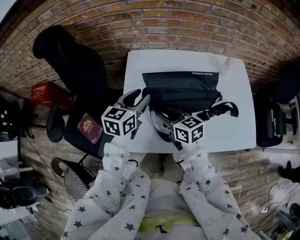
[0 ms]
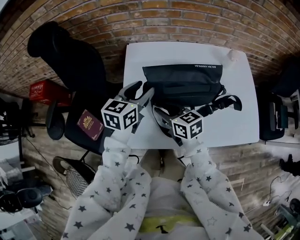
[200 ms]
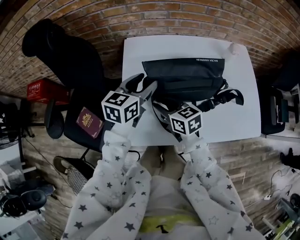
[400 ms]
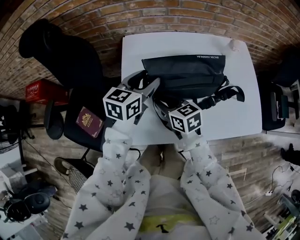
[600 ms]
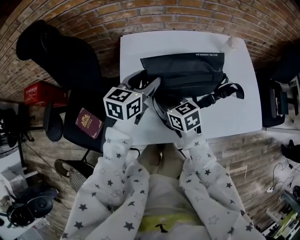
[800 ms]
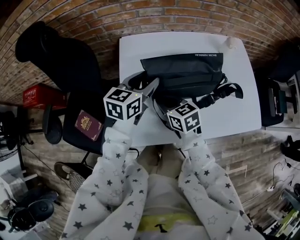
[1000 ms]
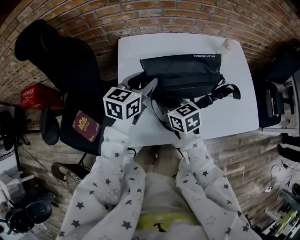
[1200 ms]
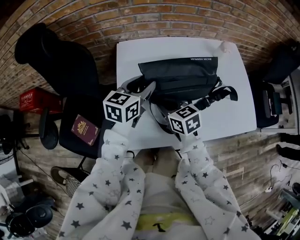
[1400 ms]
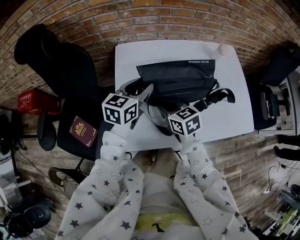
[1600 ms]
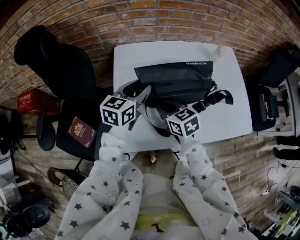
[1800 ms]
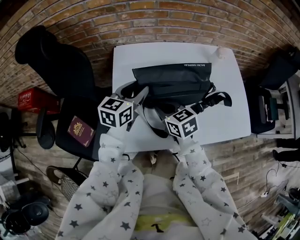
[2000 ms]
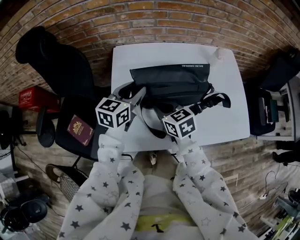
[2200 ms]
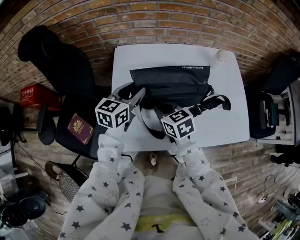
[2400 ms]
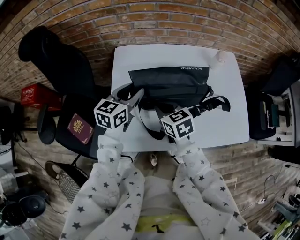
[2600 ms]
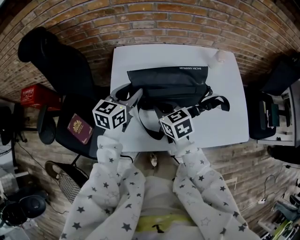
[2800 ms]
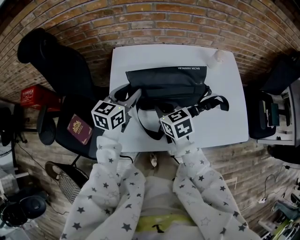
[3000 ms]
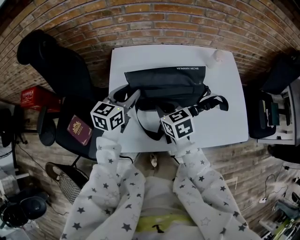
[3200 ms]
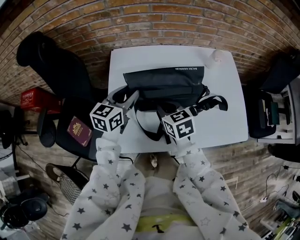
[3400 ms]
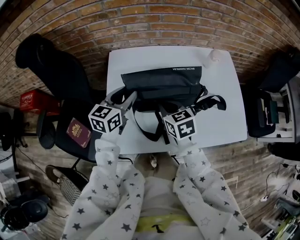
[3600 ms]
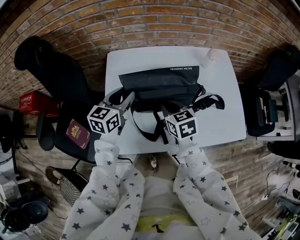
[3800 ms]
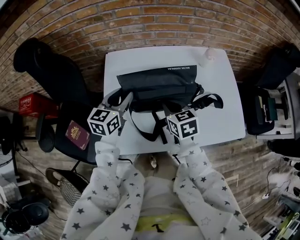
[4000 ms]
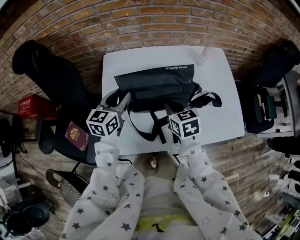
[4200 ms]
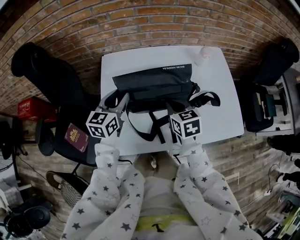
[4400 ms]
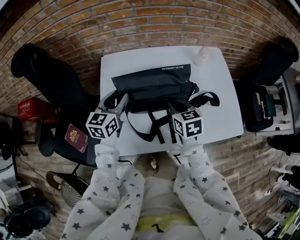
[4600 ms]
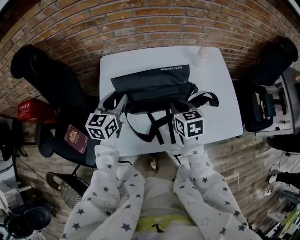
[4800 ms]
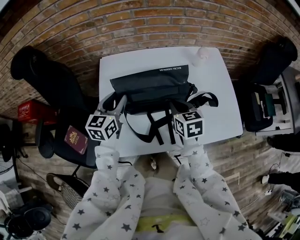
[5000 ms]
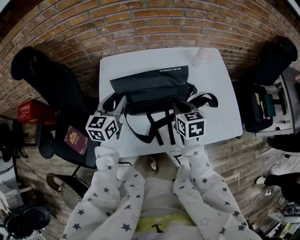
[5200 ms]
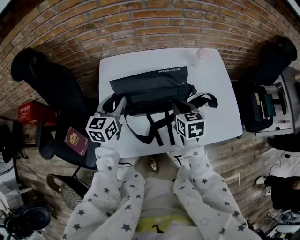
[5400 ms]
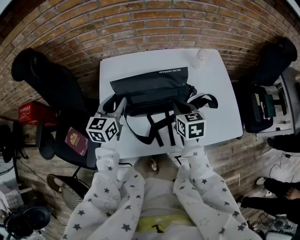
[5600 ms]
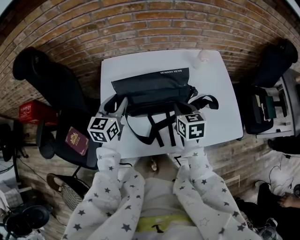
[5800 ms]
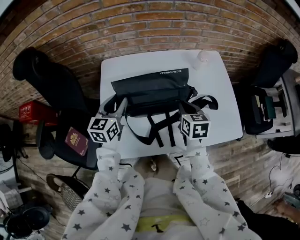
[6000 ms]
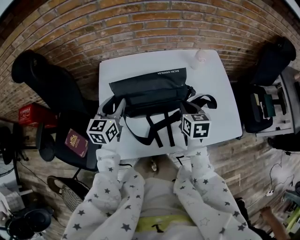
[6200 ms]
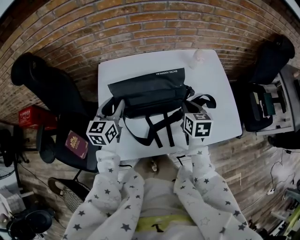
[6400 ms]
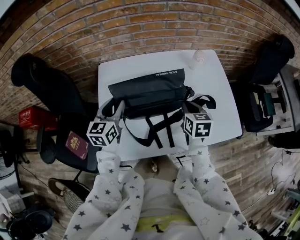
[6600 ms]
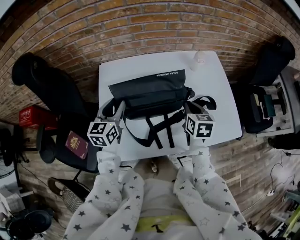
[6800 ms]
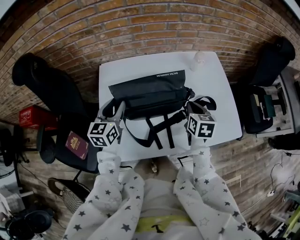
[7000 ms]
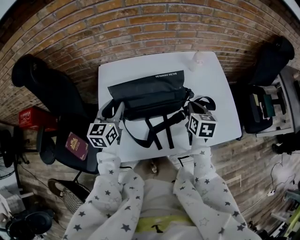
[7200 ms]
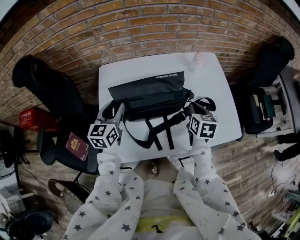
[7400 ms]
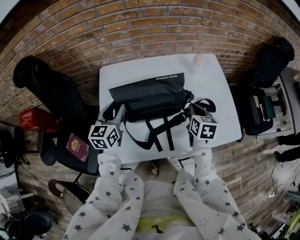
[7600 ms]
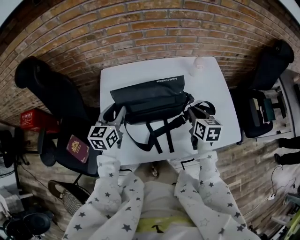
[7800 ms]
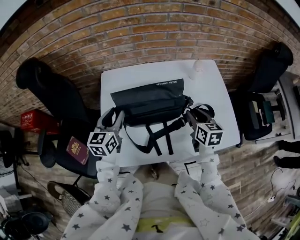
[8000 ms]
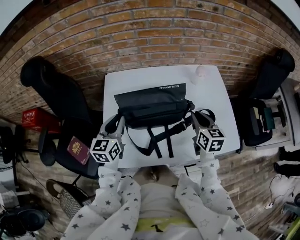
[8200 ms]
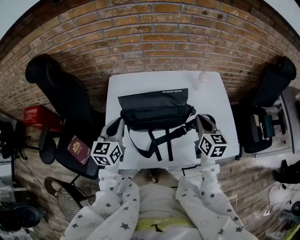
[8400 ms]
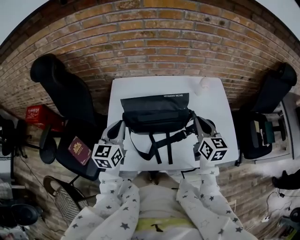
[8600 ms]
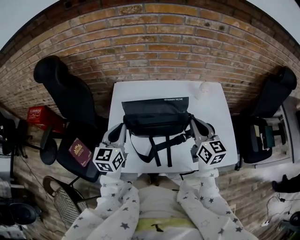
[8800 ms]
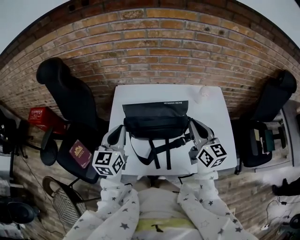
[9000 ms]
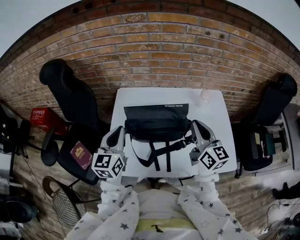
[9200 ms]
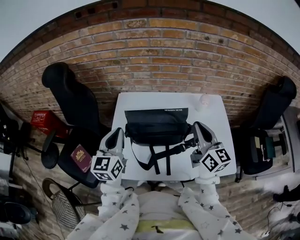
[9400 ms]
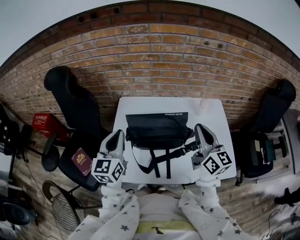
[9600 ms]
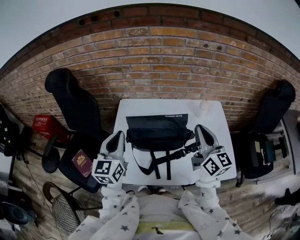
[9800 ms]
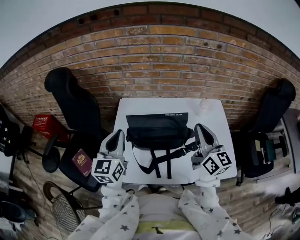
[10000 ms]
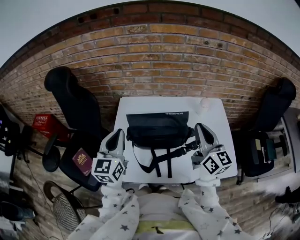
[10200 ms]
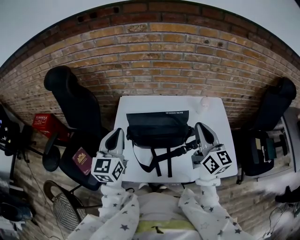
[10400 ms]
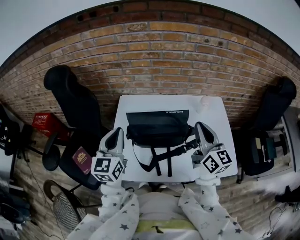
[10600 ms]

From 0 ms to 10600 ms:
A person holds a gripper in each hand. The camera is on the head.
From 0 ms to 1600 ms: The right gripper closes.
From 1600 ms to 3000 ms: The grippers make only small movements.
From 3000 ms to 4600 ms: The right gripper is displaced to the right by roughly 10 cm.
From 4600 ms to 6000 ms: The right gripper is displaced to the right by roughly 5 cm.
From 6000 ms to 7600 ms: The right gripper shifts roughly 5 cm to the right.
From 7600 ms to 9000 ms: The left gripper is displaced upward and backward by some 10 cm, and closes its fingers. Meanwhile the right gripper heads upward, covering about 15 cm, tilts its fingers about 30 degrees upward, and opens and closes again.
From 9000 ms to 10600 ms: The two grippers go roughly 5 cm upward.

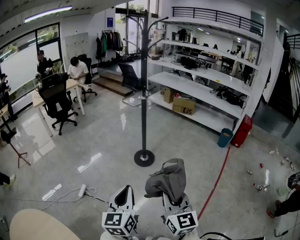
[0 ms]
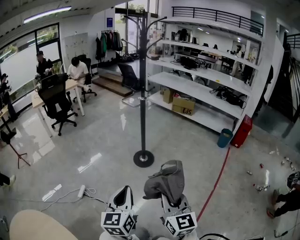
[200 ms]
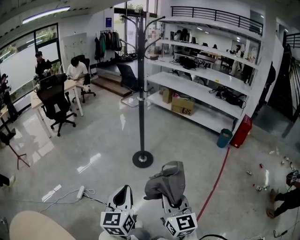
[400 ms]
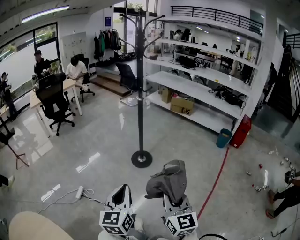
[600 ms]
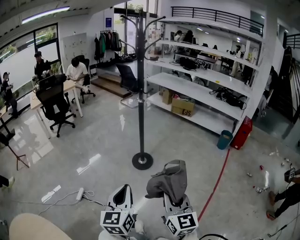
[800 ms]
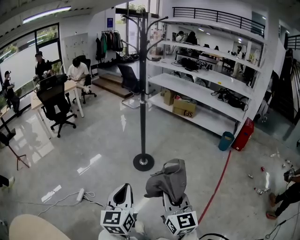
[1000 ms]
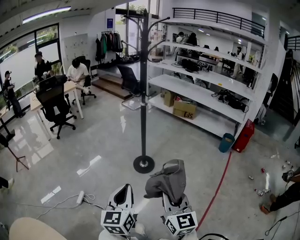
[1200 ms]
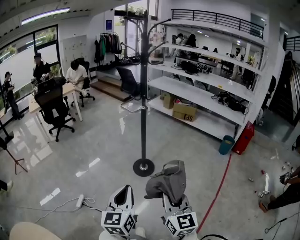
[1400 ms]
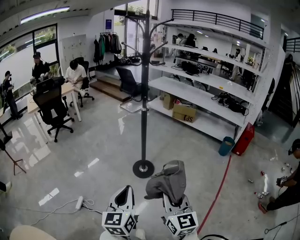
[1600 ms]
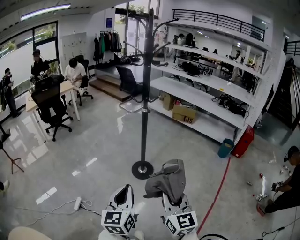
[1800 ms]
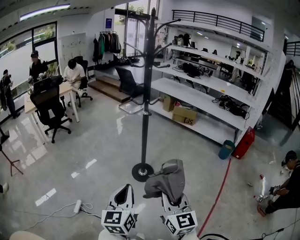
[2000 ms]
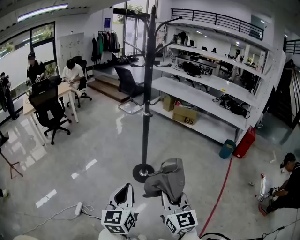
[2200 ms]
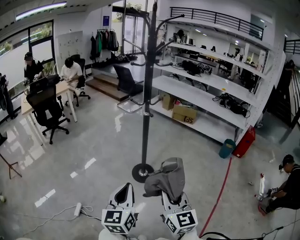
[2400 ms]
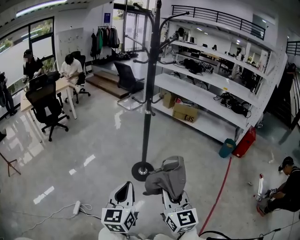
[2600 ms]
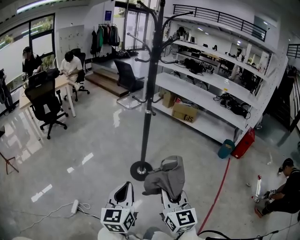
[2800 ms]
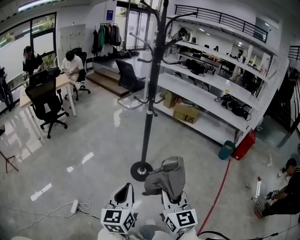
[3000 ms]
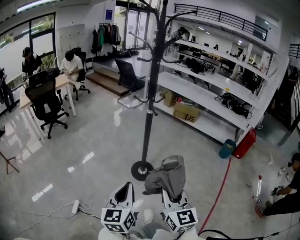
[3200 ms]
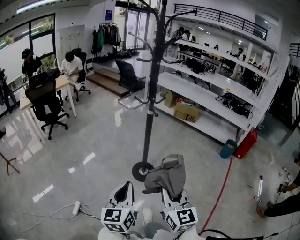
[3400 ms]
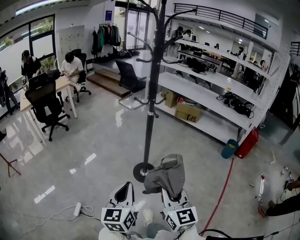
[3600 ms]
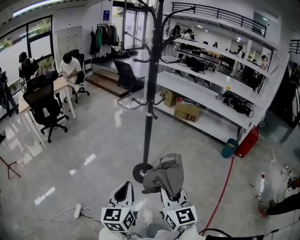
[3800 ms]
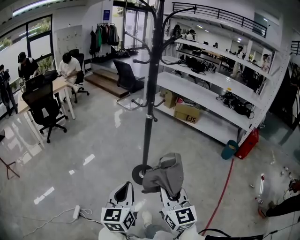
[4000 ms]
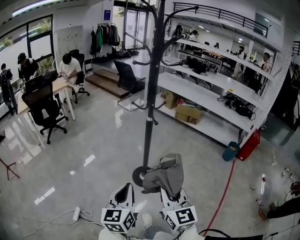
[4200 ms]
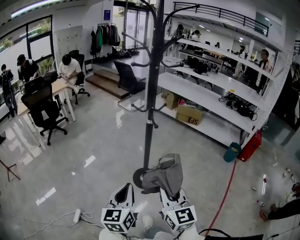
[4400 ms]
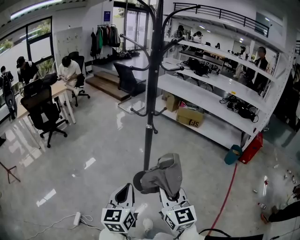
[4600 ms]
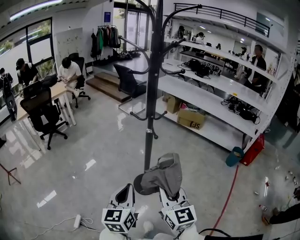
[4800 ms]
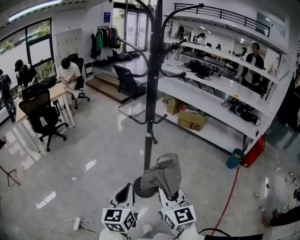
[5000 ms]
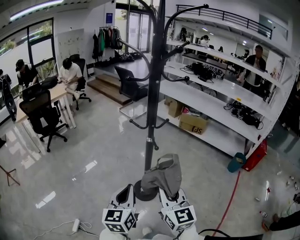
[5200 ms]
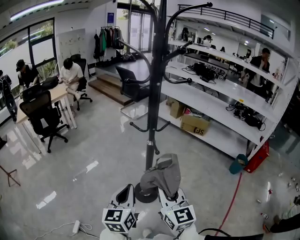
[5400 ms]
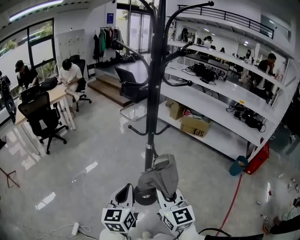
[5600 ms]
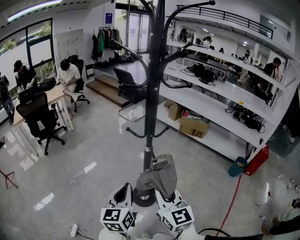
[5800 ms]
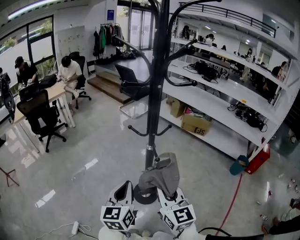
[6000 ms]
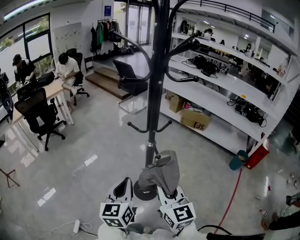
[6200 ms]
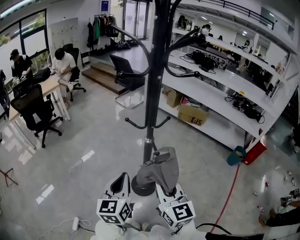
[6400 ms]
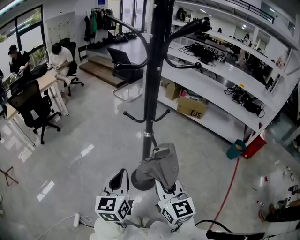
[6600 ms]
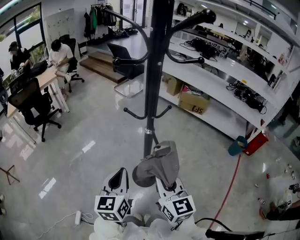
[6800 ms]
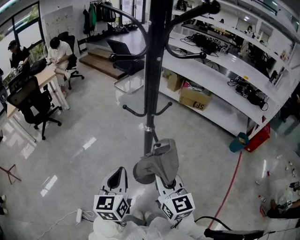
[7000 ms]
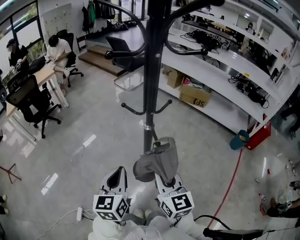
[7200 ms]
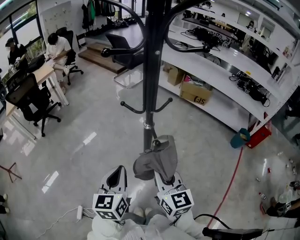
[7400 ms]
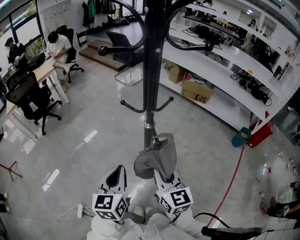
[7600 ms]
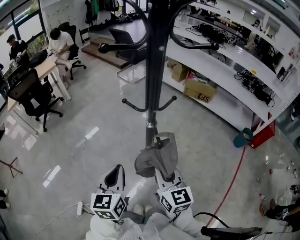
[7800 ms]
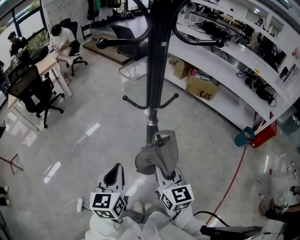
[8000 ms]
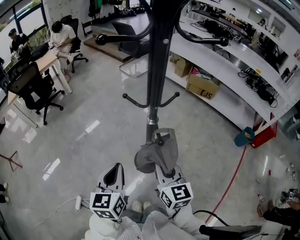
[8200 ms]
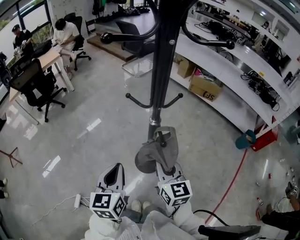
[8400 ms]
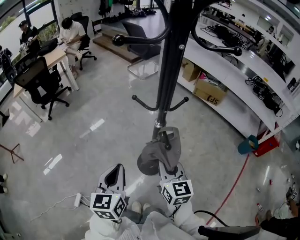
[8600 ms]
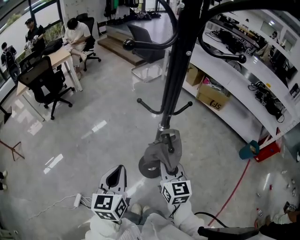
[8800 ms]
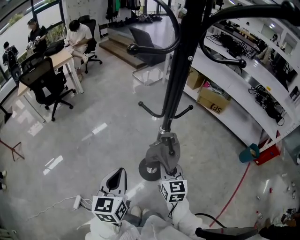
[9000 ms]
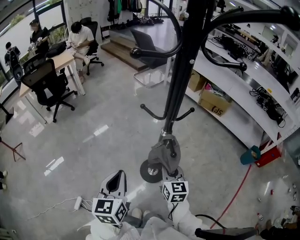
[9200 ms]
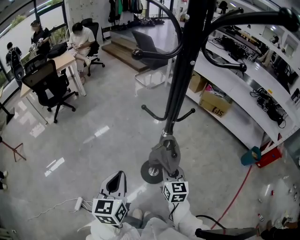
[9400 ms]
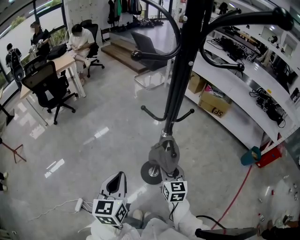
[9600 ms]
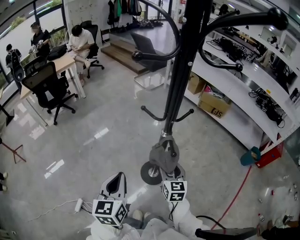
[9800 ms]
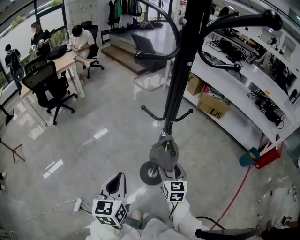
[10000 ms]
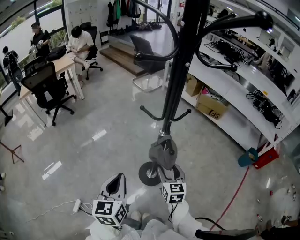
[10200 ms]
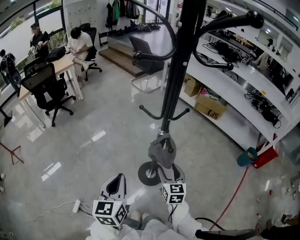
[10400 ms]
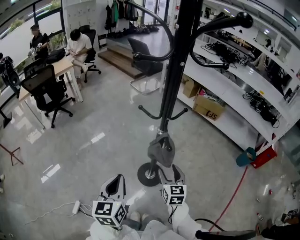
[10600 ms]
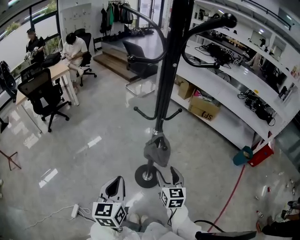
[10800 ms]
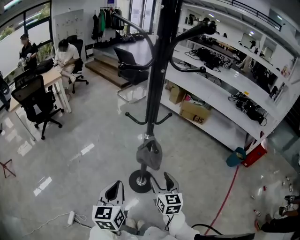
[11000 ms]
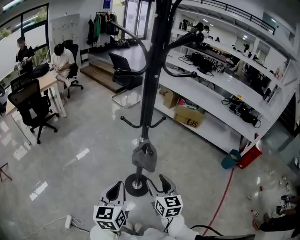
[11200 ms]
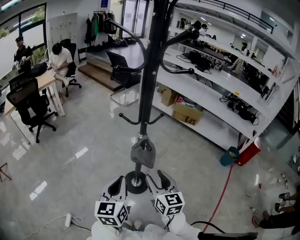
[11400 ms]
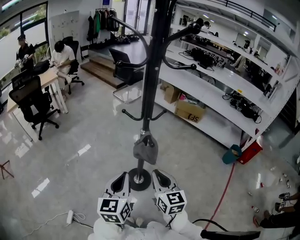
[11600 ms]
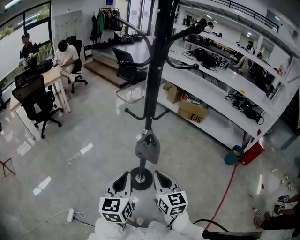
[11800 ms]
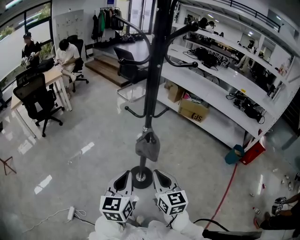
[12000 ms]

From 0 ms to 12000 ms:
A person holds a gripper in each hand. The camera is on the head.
From 0 ms to 1600 ms: The two grippers go about 10 cm forward.
From 1600 ms to 3000 ms: The grippers both shift forward by roughly 10 cm.
From 3000 ms to 4400 ms: Both grippers travel together forward, about 10 cm.
From 4400 ms to 6000 ms: Both grippers move forward, approximately 20 cm.
From 6000 ms to 7600 ms: The right gripper travels downward by about 5 cm.
From 7600 ms to 9000 ms: The right gripper shifts some 10 cm downward and forward.
From 9000 ms to 10400 ms: The right gripper opens.
From 10400 ms to 12000 ms: The right gripper shifts about 15 cm upward and backward, and closes. Meanwhile the left gripper shifts about 5 cm to the right.

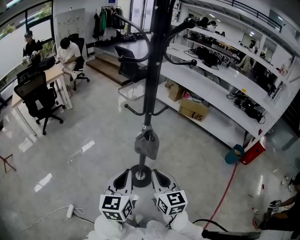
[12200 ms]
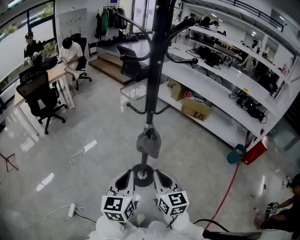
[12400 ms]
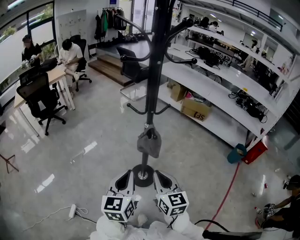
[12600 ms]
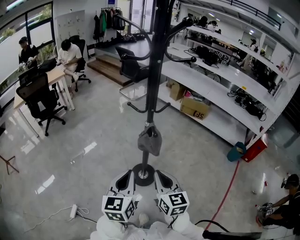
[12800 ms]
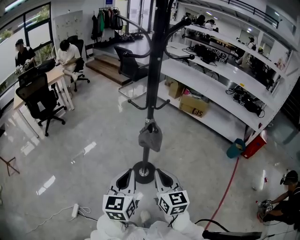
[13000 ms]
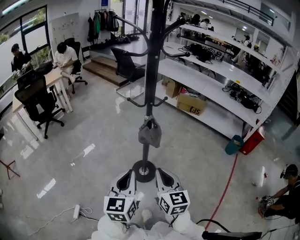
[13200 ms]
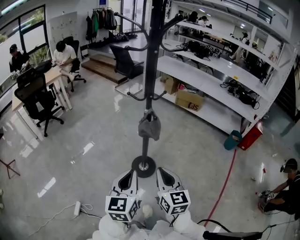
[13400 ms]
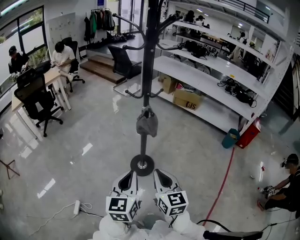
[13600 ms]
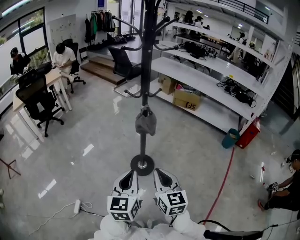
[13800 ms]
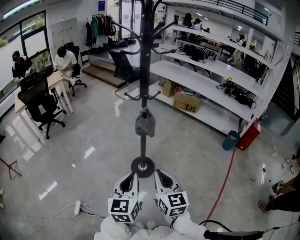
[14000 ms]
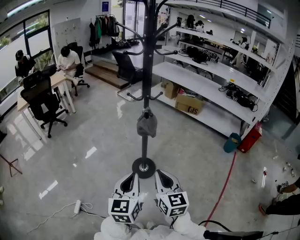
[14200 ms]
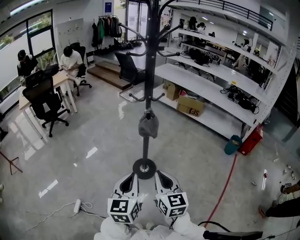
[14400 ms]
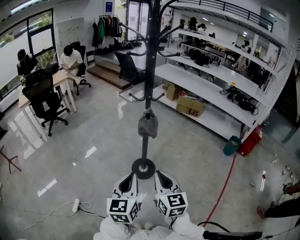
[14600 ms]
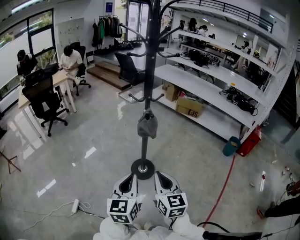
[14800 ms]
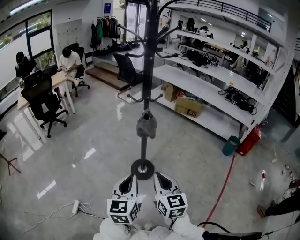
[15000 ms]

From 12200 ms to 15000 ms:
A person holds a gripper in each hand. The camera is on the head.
From 12200 ms to 13600 ms: The two grippers go approximately 10 cm backward.
From 13600 ms to 15000 ms: There are only small adjustments of the grippers.
